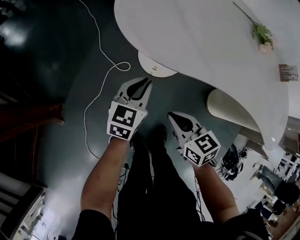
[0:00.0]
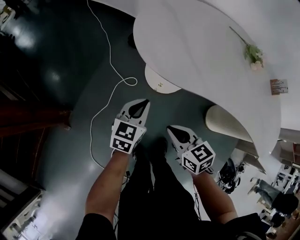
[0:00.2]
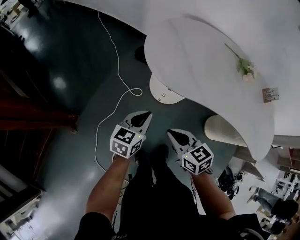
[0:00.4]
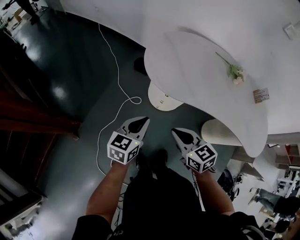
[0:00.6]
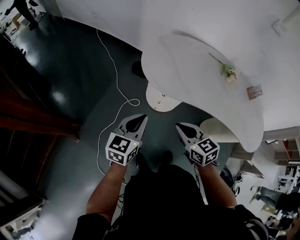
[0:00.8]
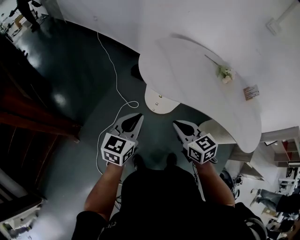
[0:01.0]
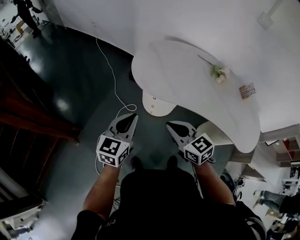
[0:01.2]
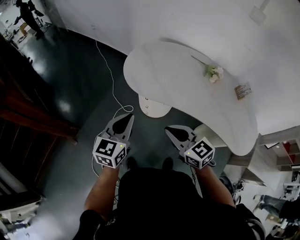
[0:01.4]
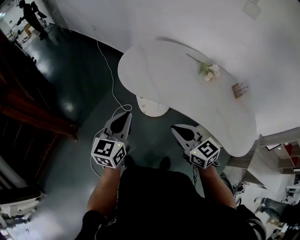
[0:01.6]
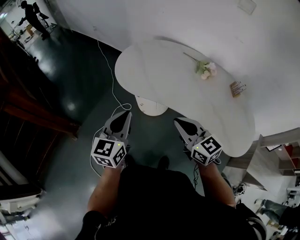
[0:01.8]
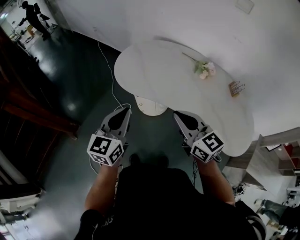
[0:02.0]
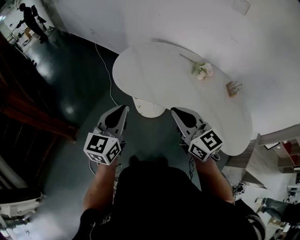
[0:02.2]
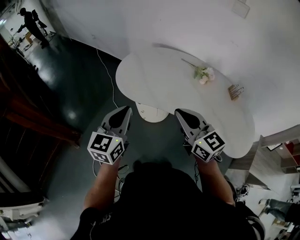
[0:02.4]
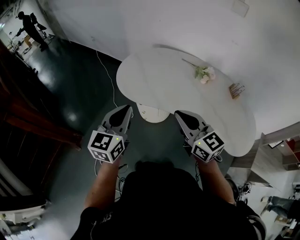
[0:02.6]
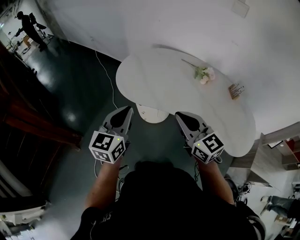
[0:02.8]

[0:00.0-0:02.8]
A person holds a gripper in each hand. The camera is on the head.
0:00.0 to 0:01.4: The left gripper heads upward and backward, covering about 40 cm. The right gripper heads upward, covering some 30 cm, and rotates approximately 30 degrees.
0:01.4 to 0:02.8: Both grippers move to the right and upward, approximately 15 cm.

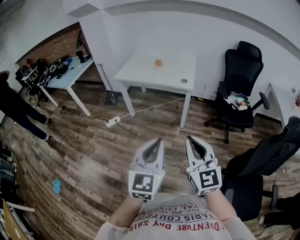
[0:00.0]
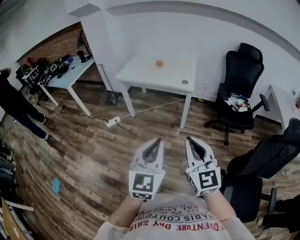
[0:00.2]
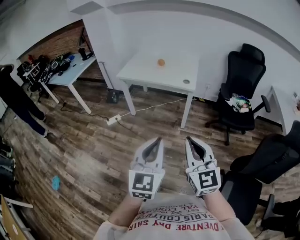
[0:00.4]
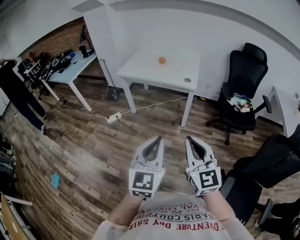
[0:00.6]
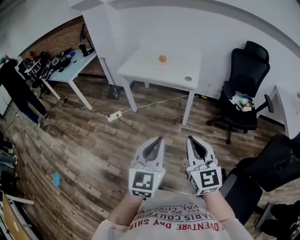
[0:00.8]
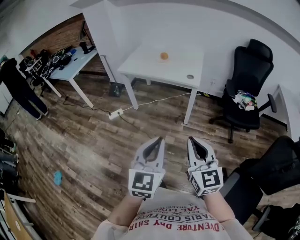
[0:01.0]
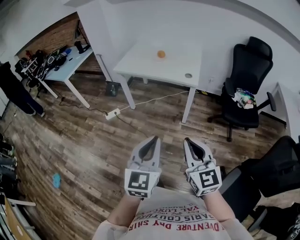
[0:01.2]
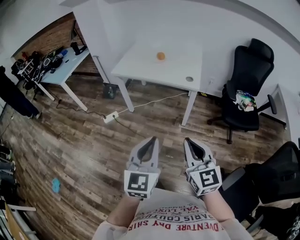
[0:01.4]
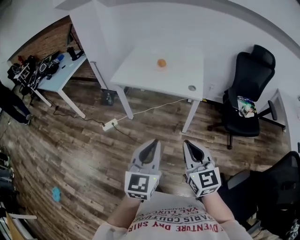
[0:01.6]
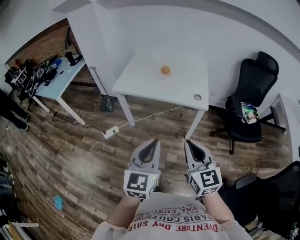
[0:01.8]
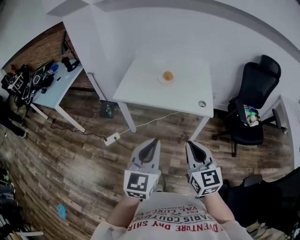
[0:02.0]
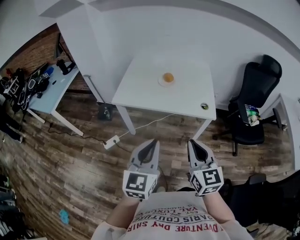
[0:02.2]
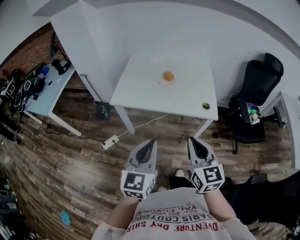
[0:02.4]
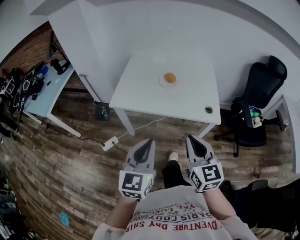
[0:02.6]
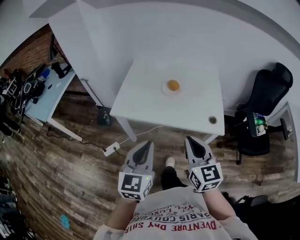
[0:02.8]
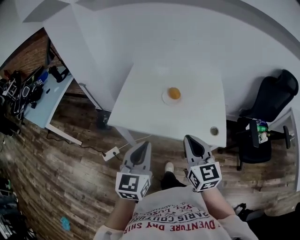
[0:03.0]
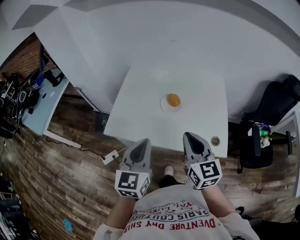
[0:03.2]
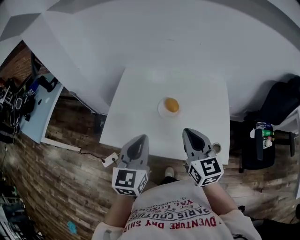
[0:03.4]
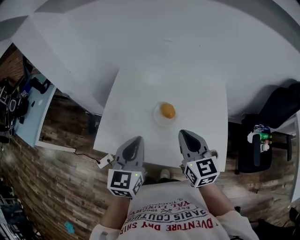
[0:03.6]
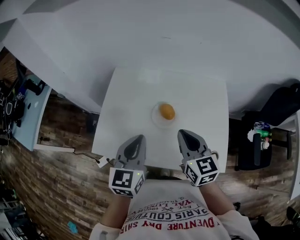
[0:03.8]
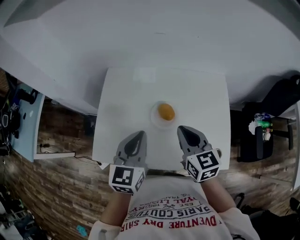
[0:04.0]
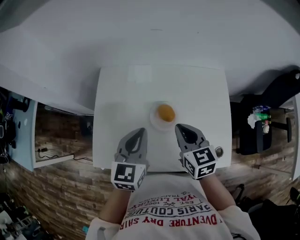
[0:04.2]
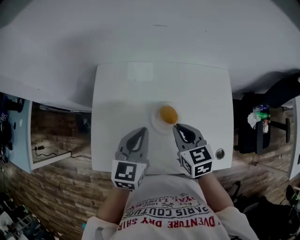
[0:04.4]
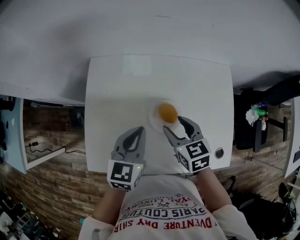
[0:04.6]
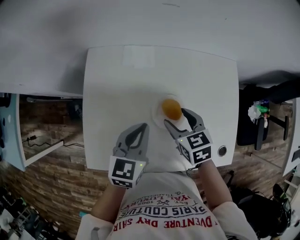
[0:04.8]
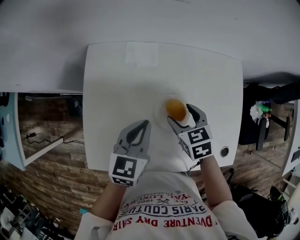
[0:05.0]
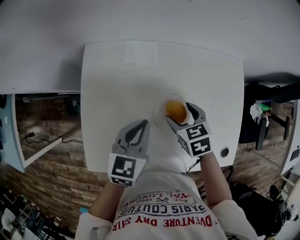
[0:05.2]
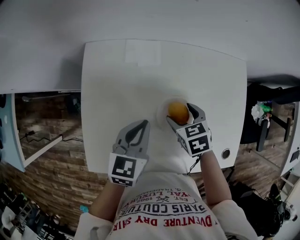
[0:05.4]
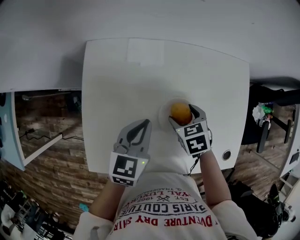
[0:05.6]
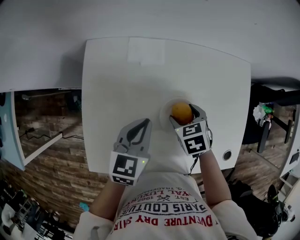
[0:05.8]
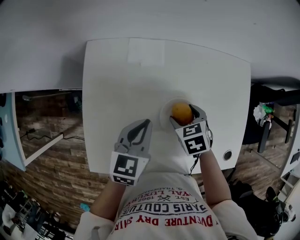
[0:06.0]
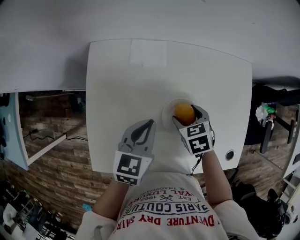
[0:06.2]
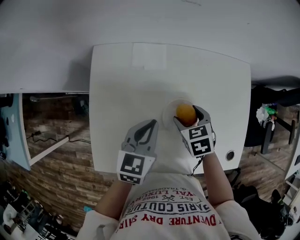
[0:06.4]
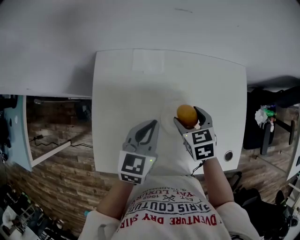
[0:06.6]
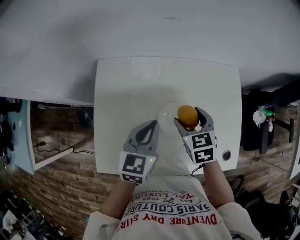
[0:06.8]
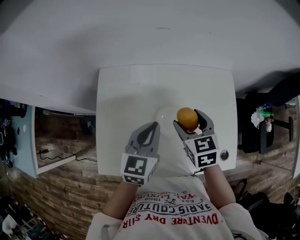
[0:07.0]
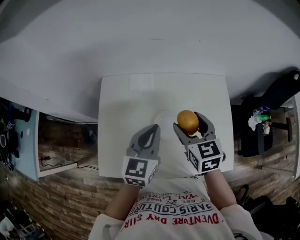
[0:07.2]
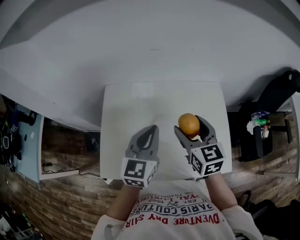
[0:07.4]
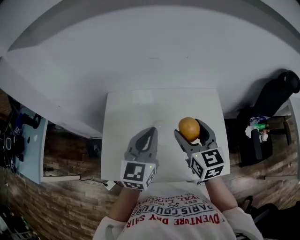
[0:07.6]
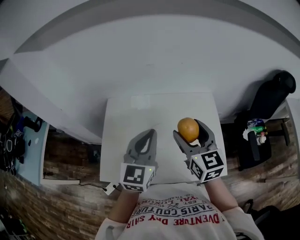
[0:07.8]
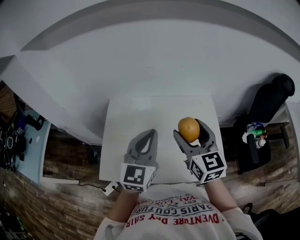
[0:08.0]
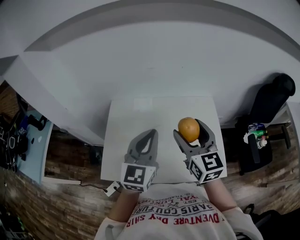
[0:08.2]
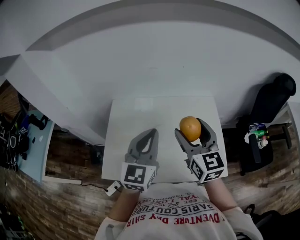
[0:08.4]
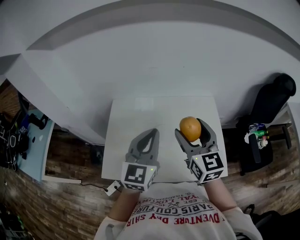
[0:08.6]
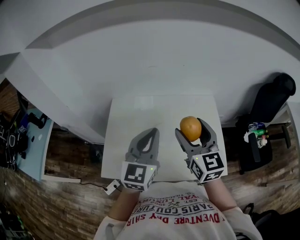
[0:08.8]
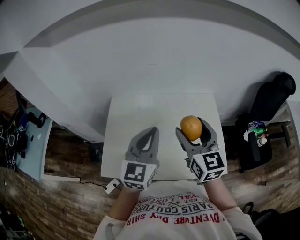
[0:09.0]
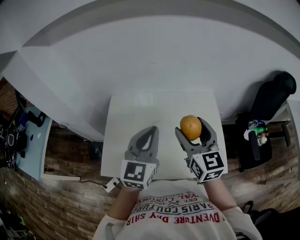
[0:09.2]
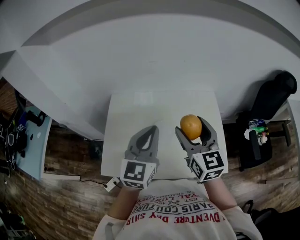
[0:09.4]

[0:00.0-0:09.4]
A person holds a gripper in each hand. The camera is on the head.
0:00.0 to 0:01.6: The grippers both shift forward by roughly 20 cm.
0:01.6 to 0:03.2: Both grippers are carried forward, roughly 50 cm.
0:03.2 to 0:04.8: The two grippers go about 35 cm forward and downward. The right gripper tips its fingers downward by approximately 40 degrees, and opens up. The left gripper turns by approximately 30 degrees.
0:04.8 to 0:06.2: The left gripper shifts by some 5 cm; the right gripper moves downward, about 10 cm.
0:06.2 to 0:07.8: Both grippers travel together upward, some 30 cm. The right gripper points its fingers approximately 50 degrees further upward, while the left gripper turns by some 30 degrees.
0:07.8 to 0:09.4: The grippers make only small movements.

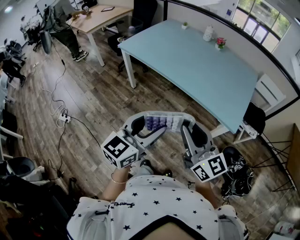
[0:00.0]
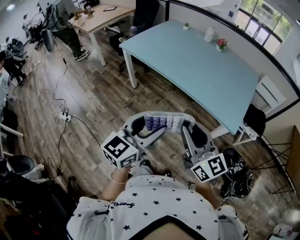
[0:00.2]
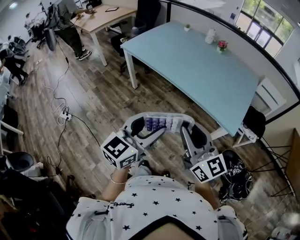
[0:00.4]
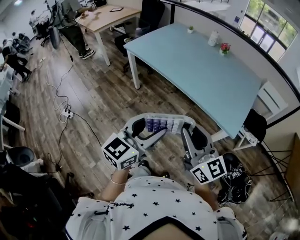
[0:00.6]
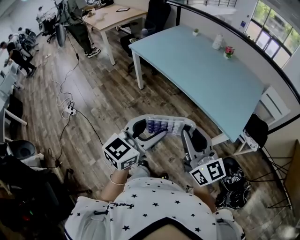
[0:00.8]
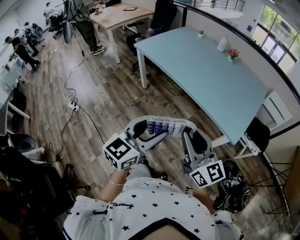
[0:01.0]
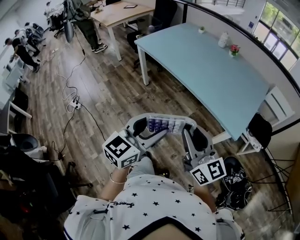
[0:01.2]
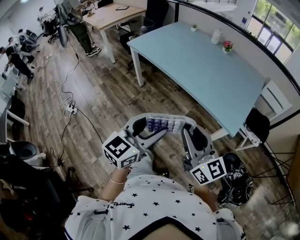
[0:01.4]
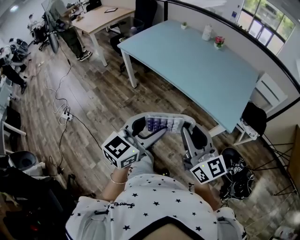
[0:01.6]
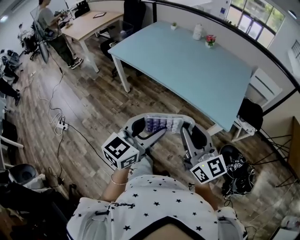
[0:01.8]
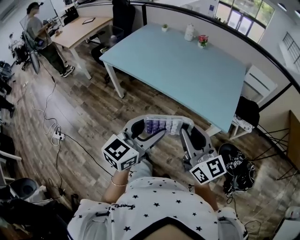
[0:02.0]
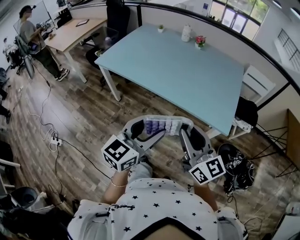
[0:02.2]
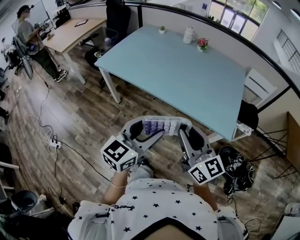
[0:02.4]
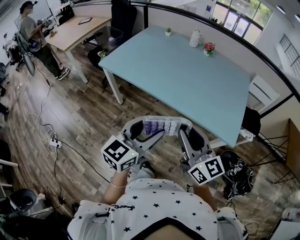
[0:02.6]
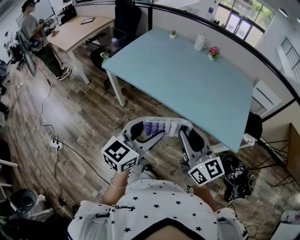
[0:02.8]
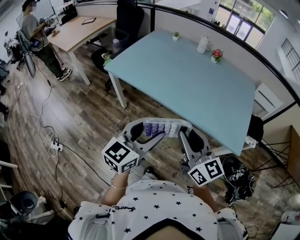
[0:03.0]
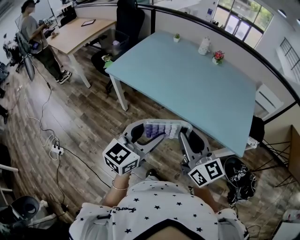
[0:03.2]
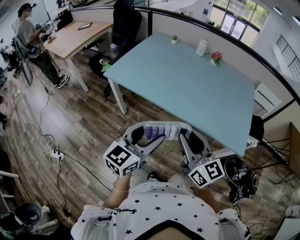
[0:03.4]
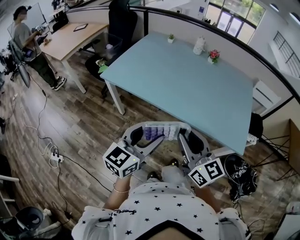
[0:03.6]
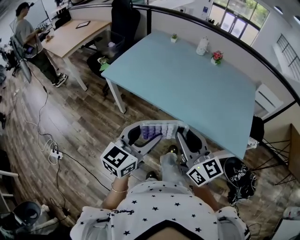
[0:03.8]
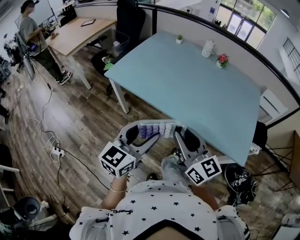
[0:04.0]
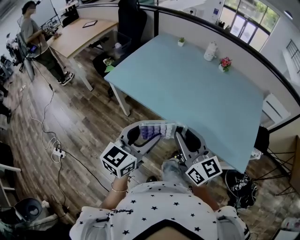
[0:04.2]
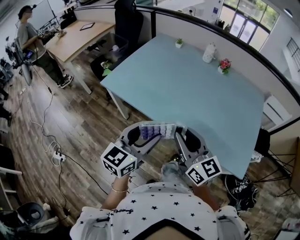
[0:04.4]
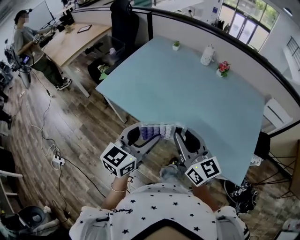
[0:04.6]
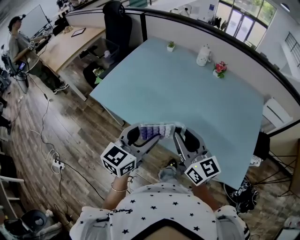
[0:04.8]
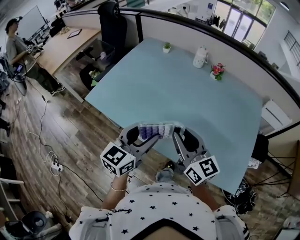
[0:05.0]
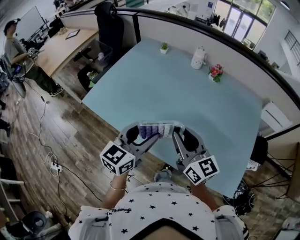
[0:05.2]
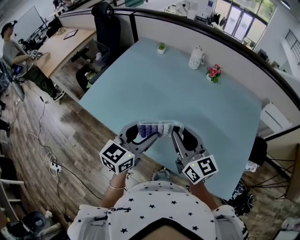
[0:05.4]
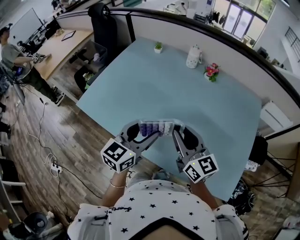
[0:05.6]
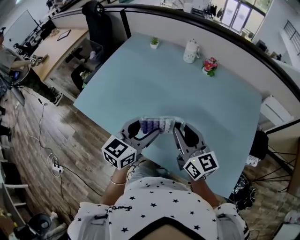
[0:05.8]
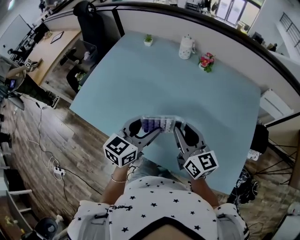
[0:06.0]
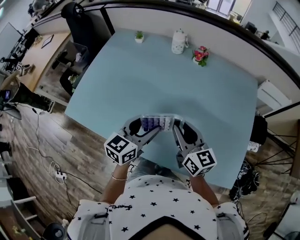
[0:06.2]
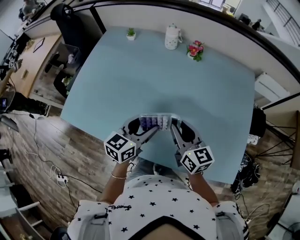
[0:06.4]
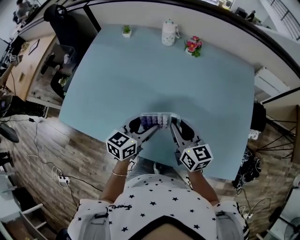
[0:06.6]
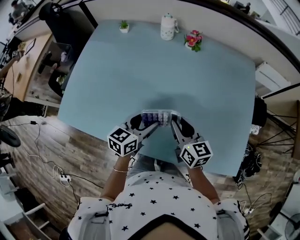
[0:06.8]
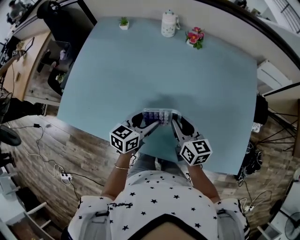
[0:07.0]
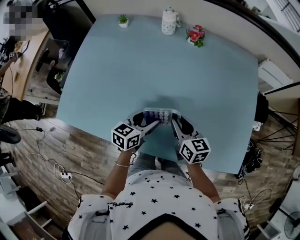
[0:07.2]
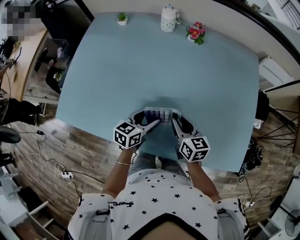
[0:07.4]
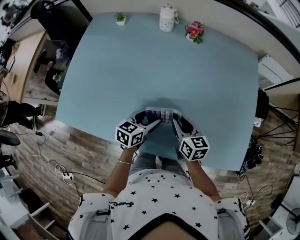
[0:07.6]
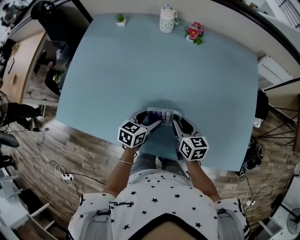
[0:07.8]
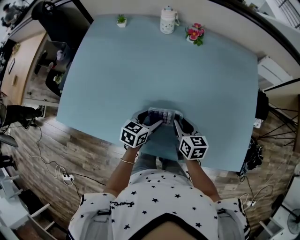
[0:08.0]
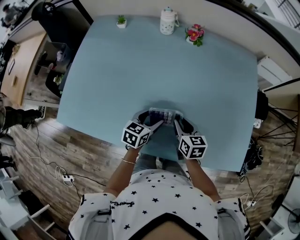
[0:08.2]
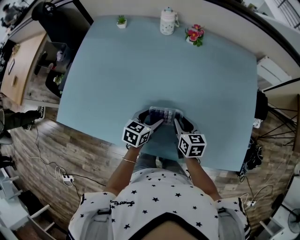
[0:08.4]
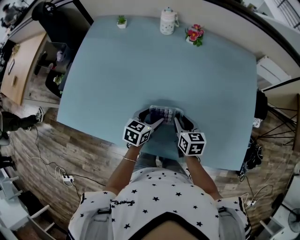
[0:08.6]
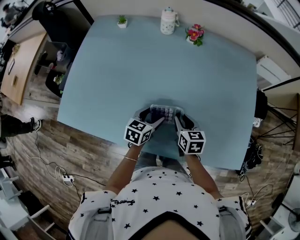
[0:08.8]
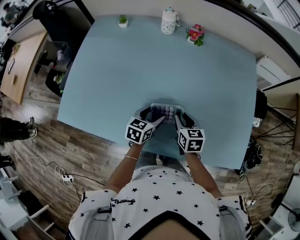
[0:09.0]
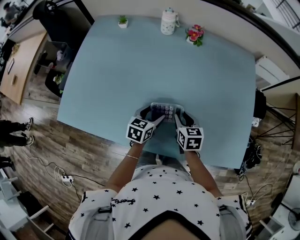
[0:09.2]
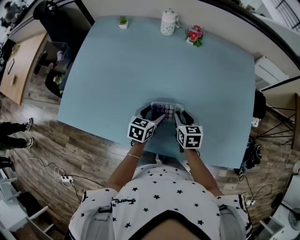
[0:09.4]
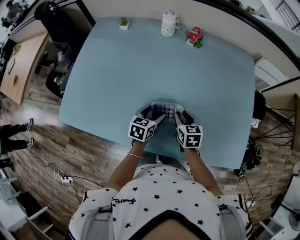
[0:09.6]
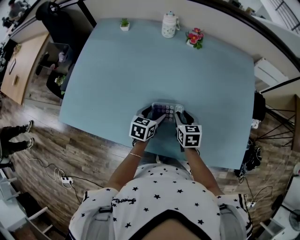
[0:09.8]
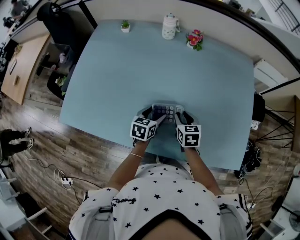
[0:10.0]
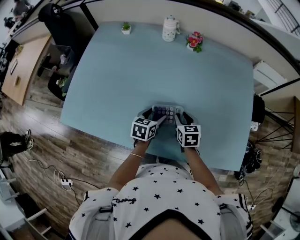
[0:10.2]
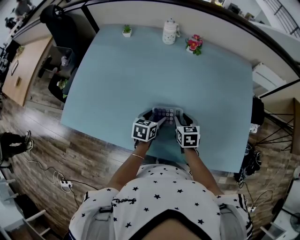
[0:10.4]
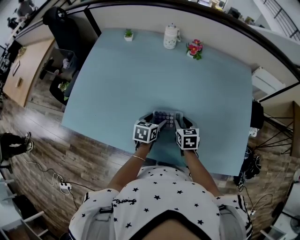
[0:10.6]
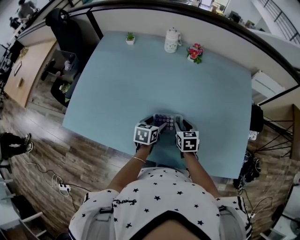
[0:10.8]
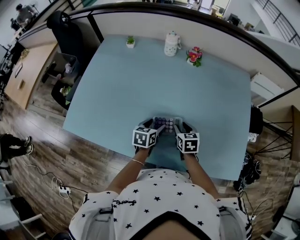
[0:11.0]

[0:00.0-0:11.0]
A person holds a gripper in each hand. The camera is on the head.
0:00.0 to 0:01.6: The grippers both shift to the right by some 5 cm.
0:01.6 to 0:03.2: The grippers both shift forward and to the left by some 25 cm.
0:03.2 to 0:04.8: Both grippers move forward, roughly 20 cm.
0:04.8 to 0:06.2: The two grippers go about 20 cm forward, to the right and downward.
0:06.2 to 0:07.8: Both grippers move downward, some 15 cm. The left gripper rotates roughly 20 degrees. The right gripper swivels some 30 degrees.
0:07.8 to 0:09.4: The grippers stay close to where they were, moving slightly.
0:09.4 to 0:11.0: The grippers make only small movements.
